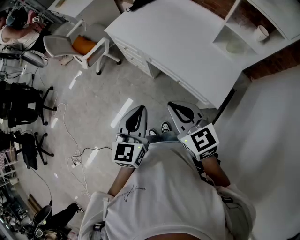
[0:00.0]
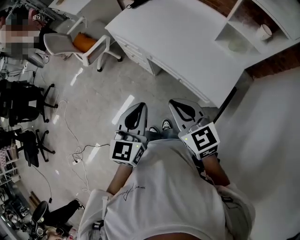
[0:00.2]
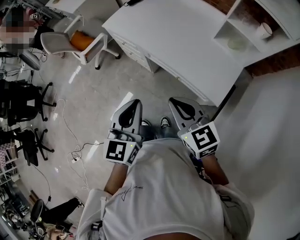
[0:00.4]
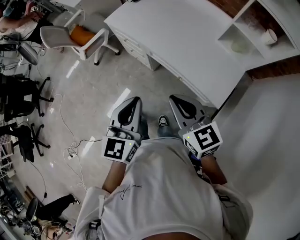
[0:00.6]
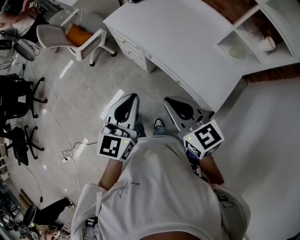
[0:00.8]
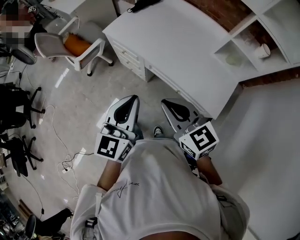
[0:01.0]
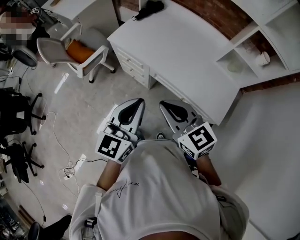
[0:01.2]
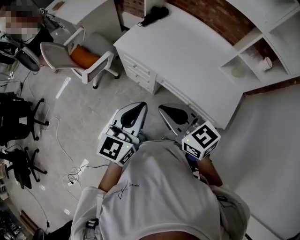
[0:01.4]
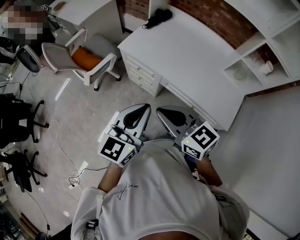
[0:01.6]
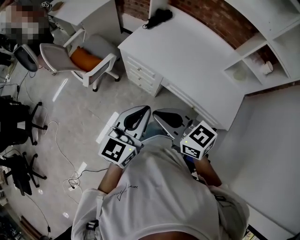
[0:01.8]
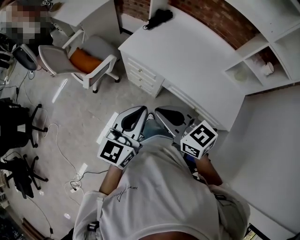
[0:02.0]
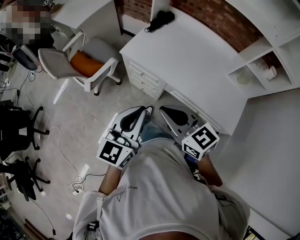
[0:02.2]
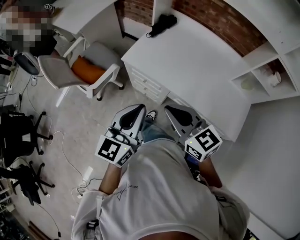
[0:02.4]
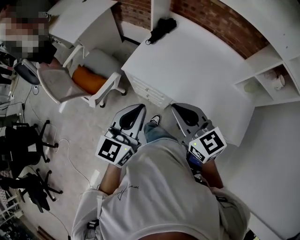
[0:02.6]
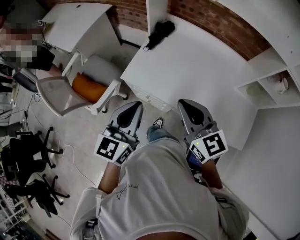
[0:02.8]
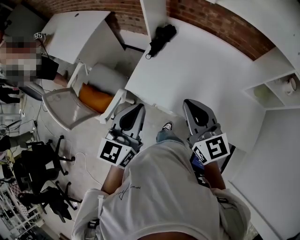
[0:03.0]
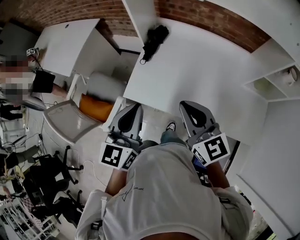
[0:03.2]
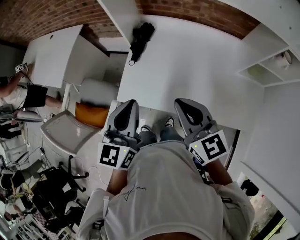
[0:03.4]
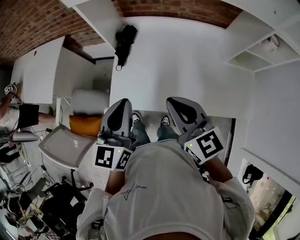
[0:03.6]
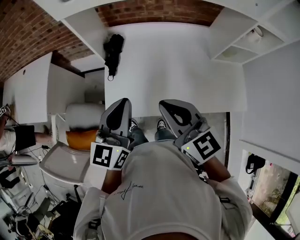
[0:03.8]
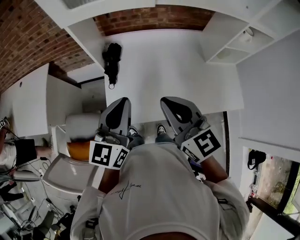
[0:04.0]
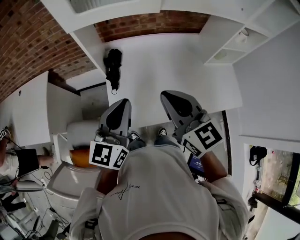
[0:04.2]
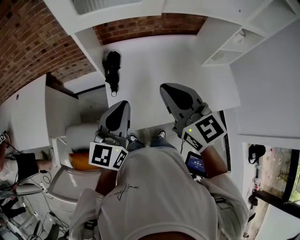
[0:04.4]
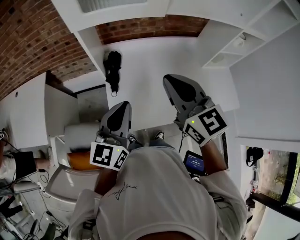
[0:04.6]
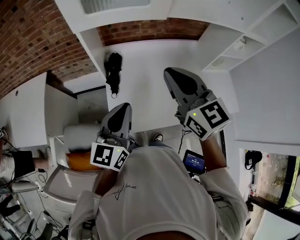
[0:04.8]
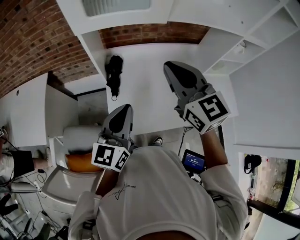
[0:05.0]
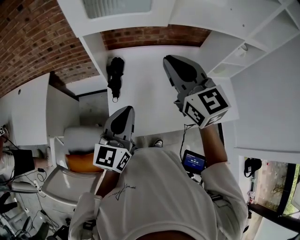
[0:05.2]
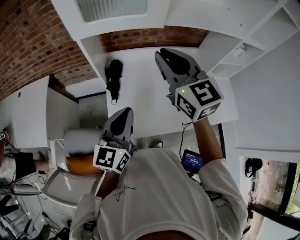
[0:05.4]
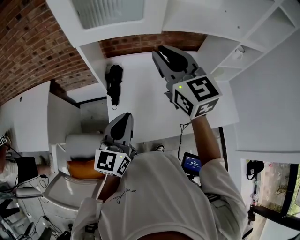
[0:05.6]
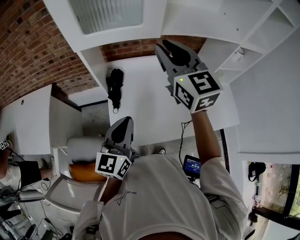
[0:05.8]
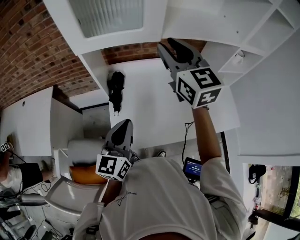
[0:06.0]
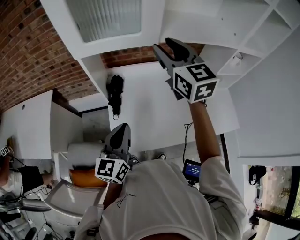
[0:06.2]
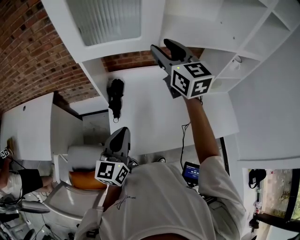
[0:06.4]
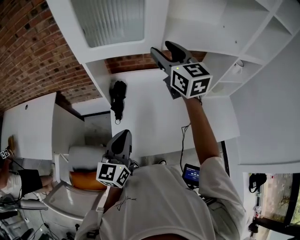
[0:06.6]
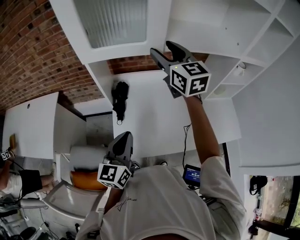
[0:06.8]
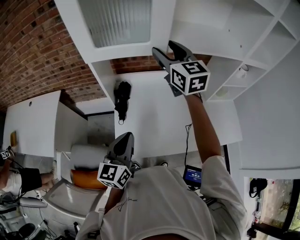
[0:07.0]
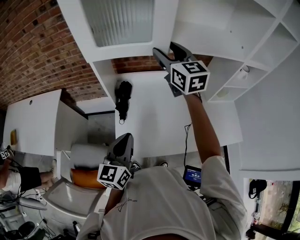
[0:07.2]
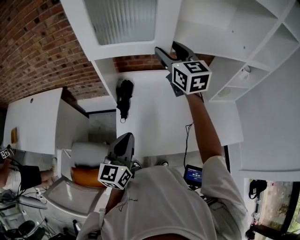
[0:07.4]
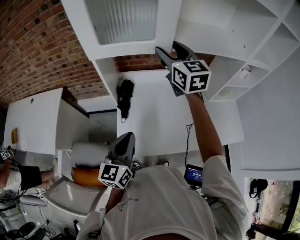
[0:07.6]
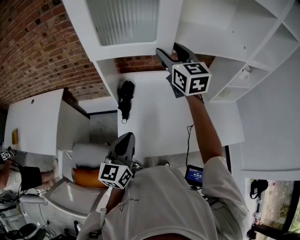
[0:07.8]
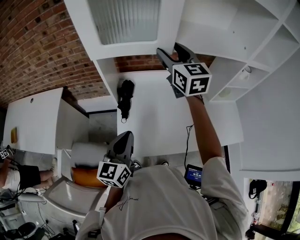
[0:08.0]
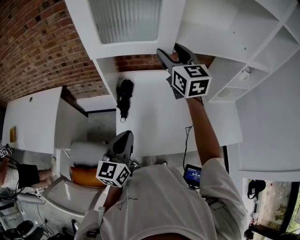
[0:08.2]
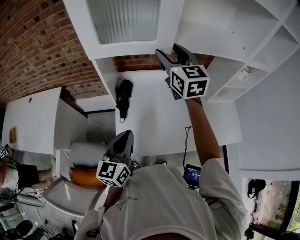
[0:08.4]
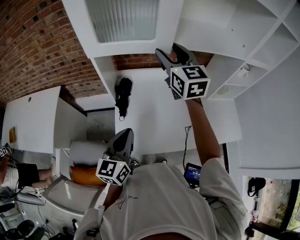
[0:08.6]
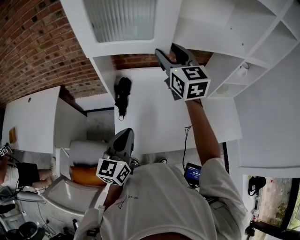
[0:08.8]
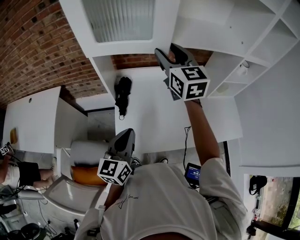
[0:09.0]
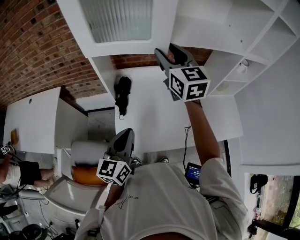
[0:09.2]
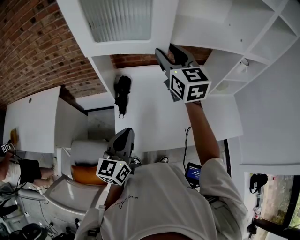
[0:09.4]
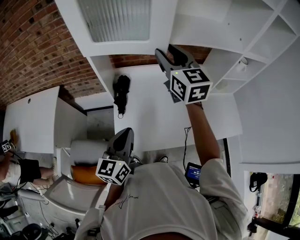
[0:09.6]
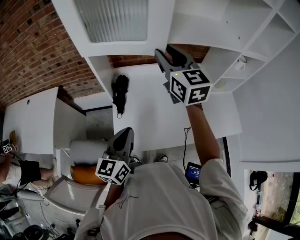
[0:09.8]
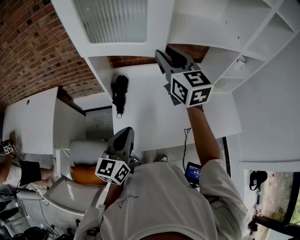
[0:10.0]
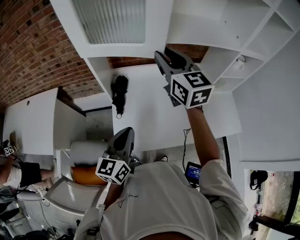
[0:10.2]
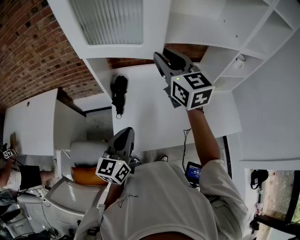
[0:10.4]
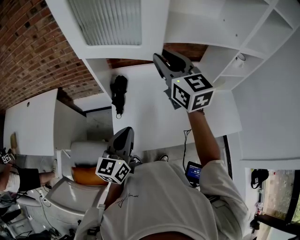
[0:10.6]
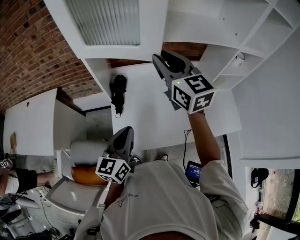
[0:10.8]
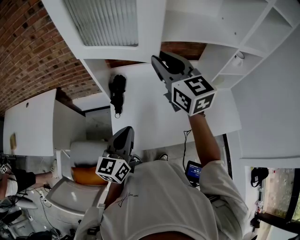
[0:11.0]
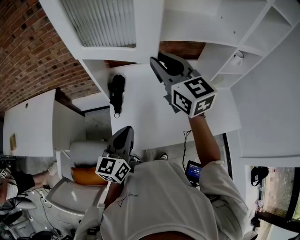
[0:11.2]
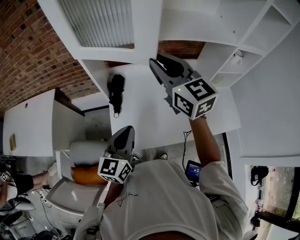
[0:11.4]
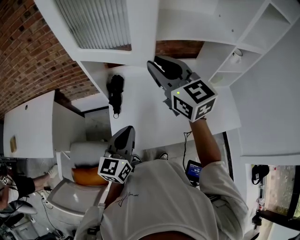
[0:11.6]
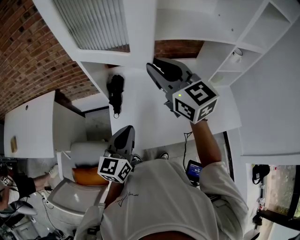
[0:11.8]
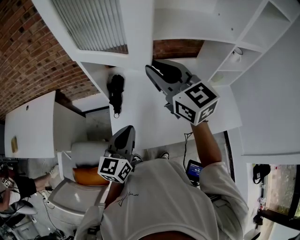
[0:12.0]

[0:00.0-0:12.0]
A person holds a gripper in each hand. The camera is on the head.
0:00.0 to 0:01.6: The right gripper goes some 25 cm to the left and forward; the left gripper is displaced forward and to the left by about 20 cm, and swivels some 20 degrees.
0:01.6 to 0:03.0: Both grippers move forward, some 30 cm. The right gripper changes its angle by some 30 degrees.
0:03.0 to 0:04.4: The right gripper changes place by some 15 cm, and turns by roughly 30 degrees. Meanwhile the left gripper ends up roughly 15 cm from where it was, and changes its angle by approximately 30 degrees.
0:04.4 to 0:06.0: The right gripper goes approximately 20 cm forward and upward, and opens.
0:06.0 to 0:07.6: The right gripper travels forward by roughly 10 cm, and opens its fingers.
0:07.6 to 0:09.0: The grippers stay close to where they were, moving slightly.
0:09.0 to 0:10.4: The right gripper closes up.
0:10.4 to 0:12.0: The right gripper shifts about 5 cm backward.

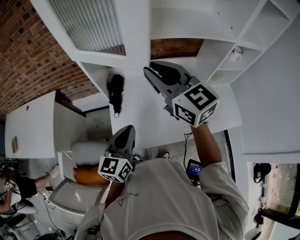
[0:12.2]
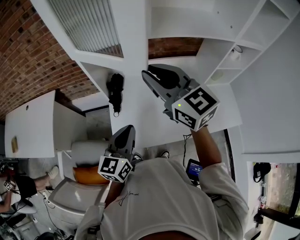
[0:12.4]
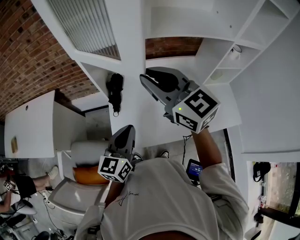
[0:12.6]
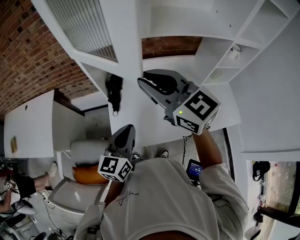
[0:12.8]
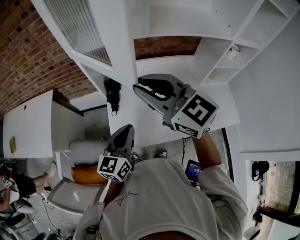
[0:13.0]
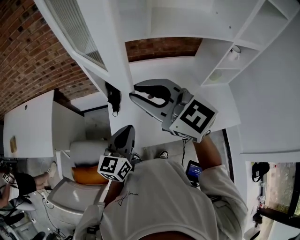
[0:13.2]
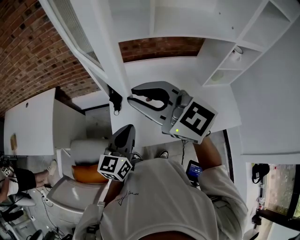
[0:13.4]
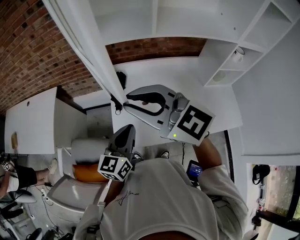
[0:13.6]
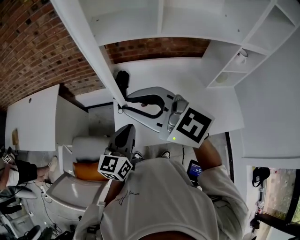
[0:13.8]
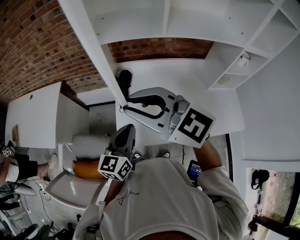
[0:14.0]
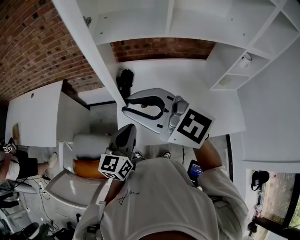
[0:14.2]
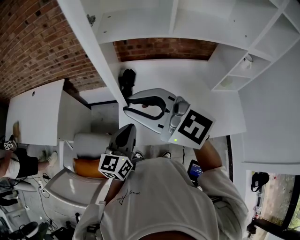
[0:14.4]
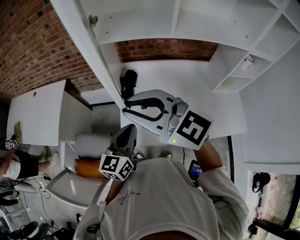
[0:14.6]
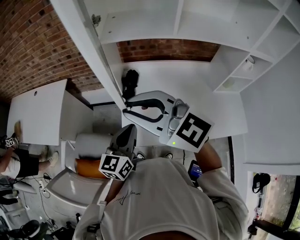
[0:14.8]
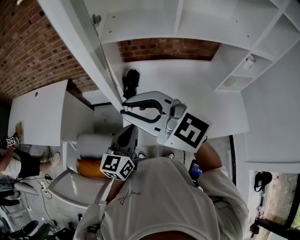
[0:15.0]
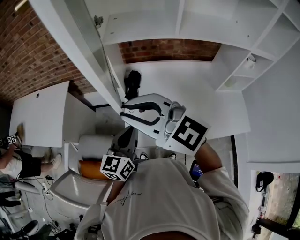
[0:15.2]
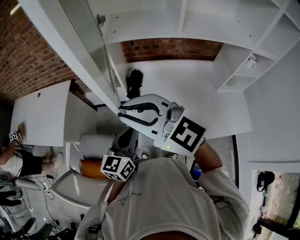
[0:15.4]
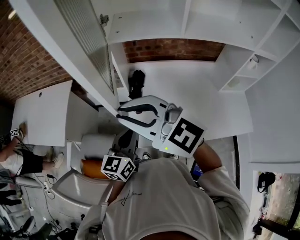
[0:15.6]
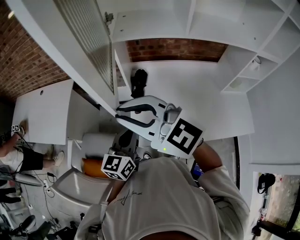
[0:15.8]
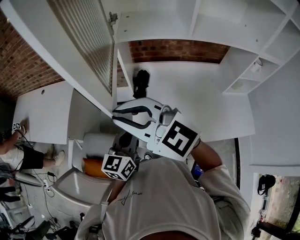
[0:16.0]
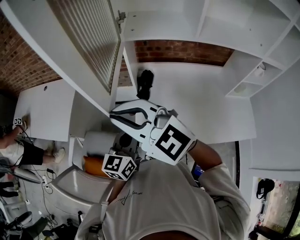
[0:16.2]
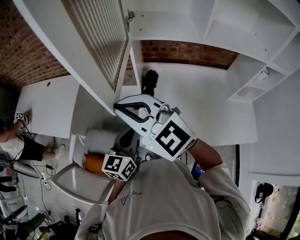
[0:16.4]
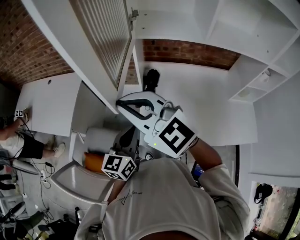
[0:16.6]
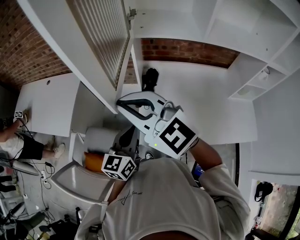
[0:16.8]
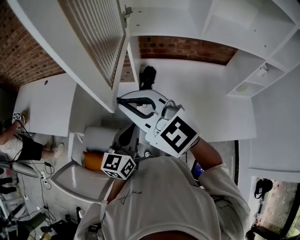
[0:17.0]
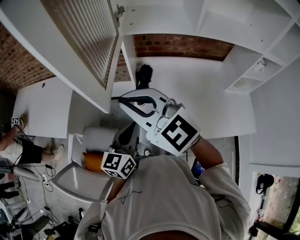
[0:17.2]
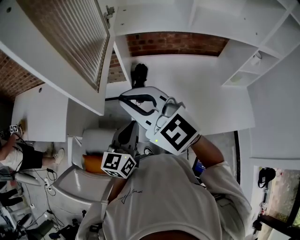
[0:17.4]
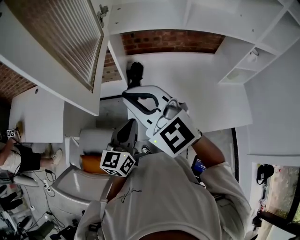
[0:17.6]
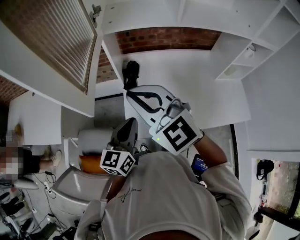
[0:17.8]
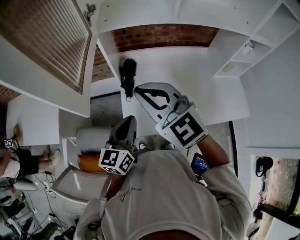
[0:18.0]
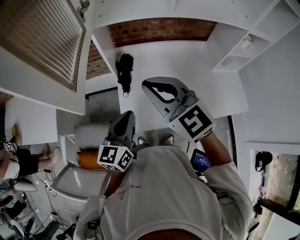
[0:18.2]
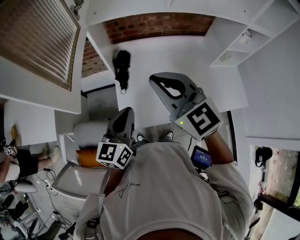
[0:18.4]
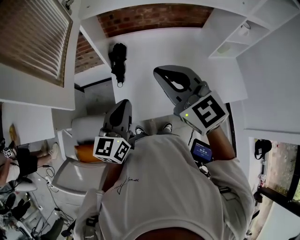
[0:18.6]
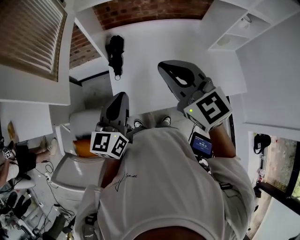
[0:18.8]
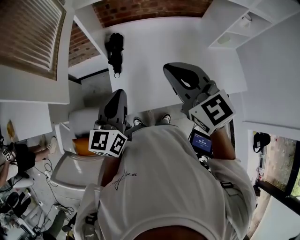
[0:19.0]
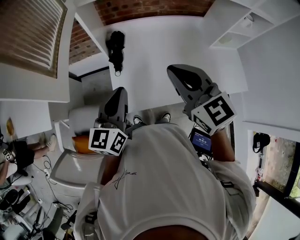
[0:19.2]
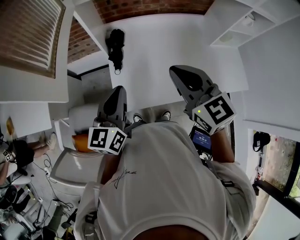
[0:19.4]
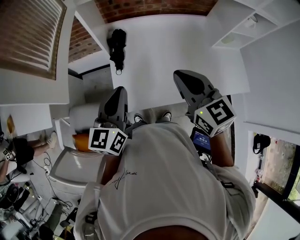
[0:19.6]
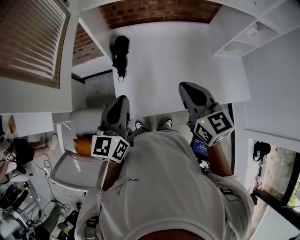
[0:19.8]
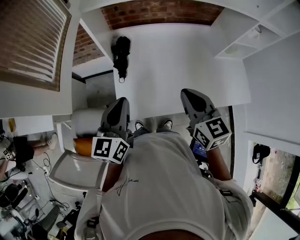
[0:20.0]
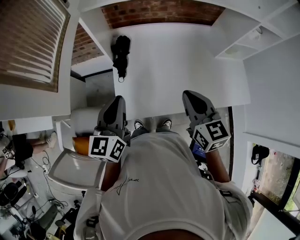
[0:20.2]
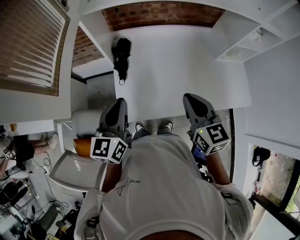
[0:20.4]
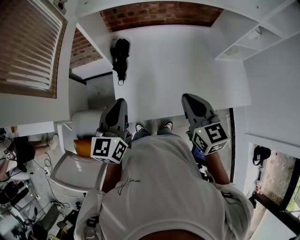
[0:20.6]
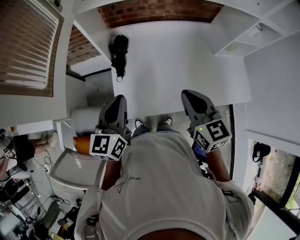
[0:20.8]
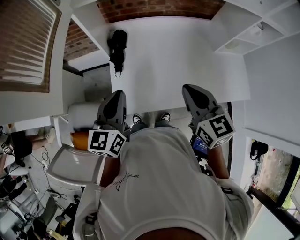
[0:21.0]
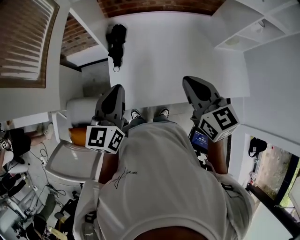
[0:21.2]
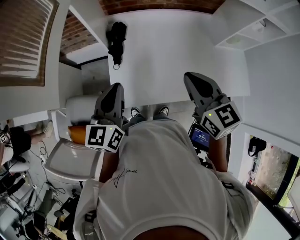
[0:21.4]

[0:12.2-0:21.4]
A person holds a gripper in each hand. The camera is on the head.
0:12.2 to 0:13.8: The right gripper shifts about 15 cm to the left and backward, and swivels some 30 degrees.
0:13.8 to 0:15.2: The right gripper shifts some 5 cm to the left.
0:15.2 to 0:16.8: The two grippers go some 10 cm to the left.
0:16.8 to 0:18.4: The right gripper goes about 20 cm to the right, and changes its angle by approximately 30 degrees, while the left gripper travels to the right by some 10 cm.
0:18.4 to 0:19.8: The right gripper goes approximately 15 cm downward and to the right, and swivels some 30 degrees.
0:19.8 to 0:21.4: The grippers make only small movements.

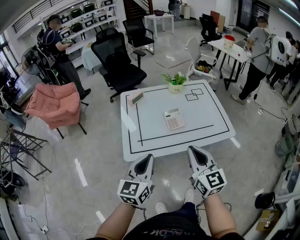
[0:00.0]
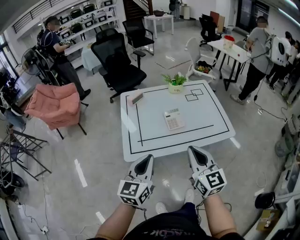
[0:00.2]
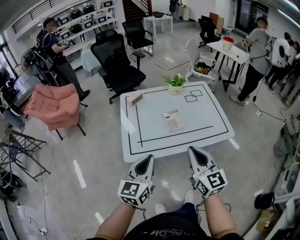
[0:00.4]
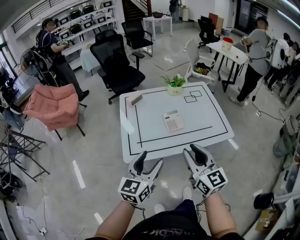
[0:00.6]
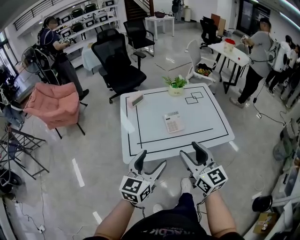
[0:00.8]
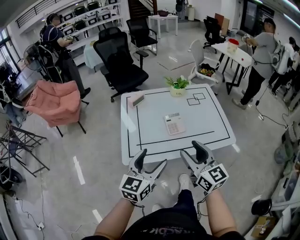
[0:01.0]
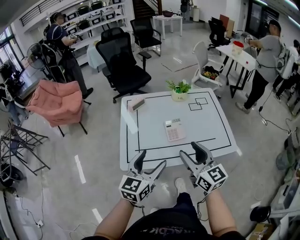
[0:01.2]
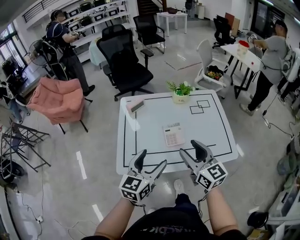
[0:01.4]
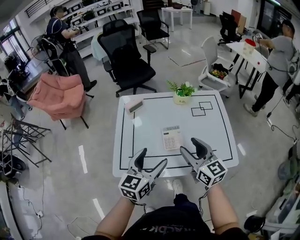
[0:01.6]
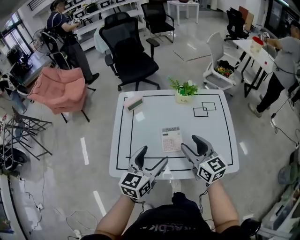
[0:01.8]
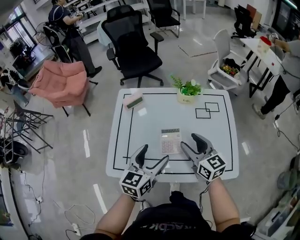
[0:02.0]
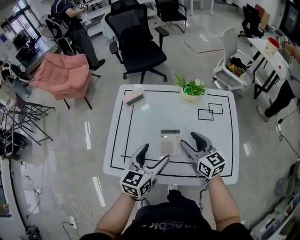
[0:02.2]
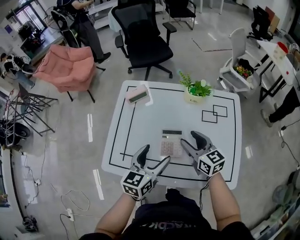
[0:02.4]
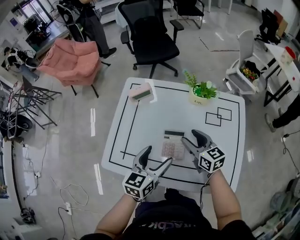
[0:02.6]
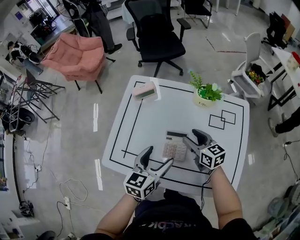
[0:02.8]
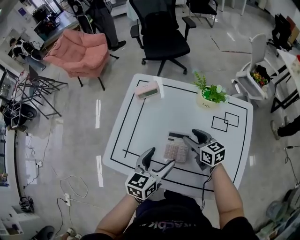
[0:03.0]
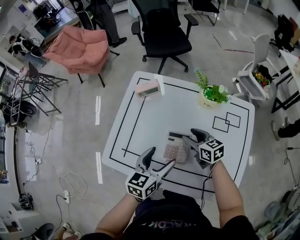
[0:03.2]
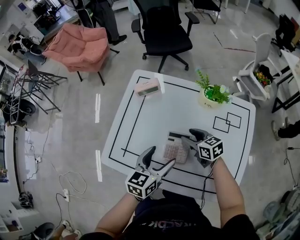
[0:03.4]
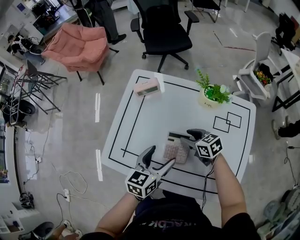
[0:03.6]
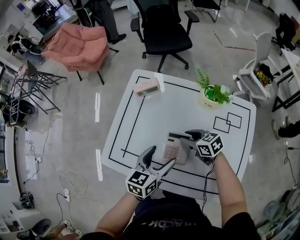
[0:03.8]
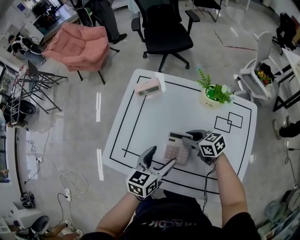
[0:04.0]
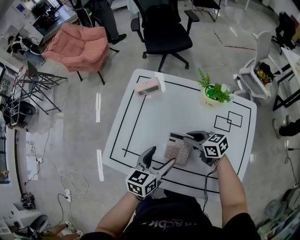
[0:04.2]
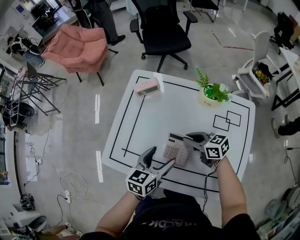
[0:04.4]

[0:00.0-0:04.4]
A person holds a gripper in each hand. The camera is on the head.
0:00.0 to 0:01.4: The left gripper is displaced forward and to the right by approximately 15 cm, and opens up. Meanwhile the right gripper heads forward, covering some 15 cm, and opens its fingers.
0:01.4 to 0:03.0: The right gripper goes roughly 30 cm forward and downward, and turns by approximately 40 degrees. Meanwhile the left gripper goes about 20 cm forward, downward and to the right, and swivels some 20 degrees.
0:03.0 to 0:04.4: The right gripper turns by some 20 degrees, and closes up.
